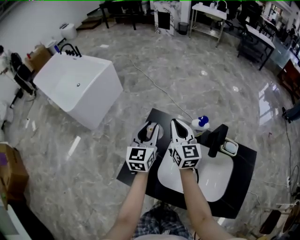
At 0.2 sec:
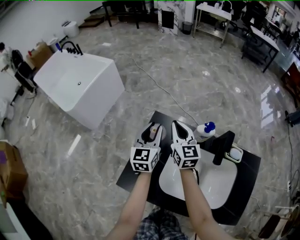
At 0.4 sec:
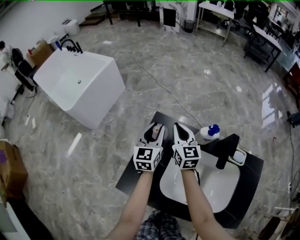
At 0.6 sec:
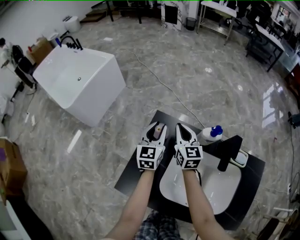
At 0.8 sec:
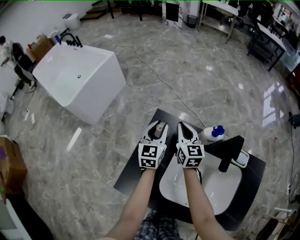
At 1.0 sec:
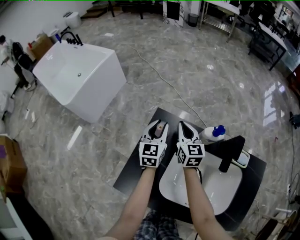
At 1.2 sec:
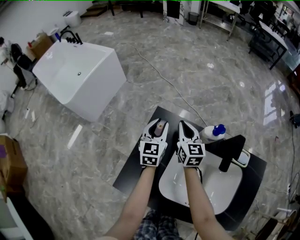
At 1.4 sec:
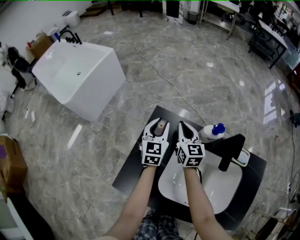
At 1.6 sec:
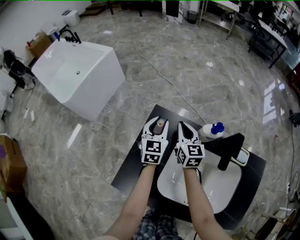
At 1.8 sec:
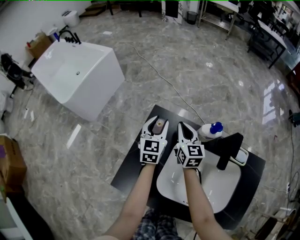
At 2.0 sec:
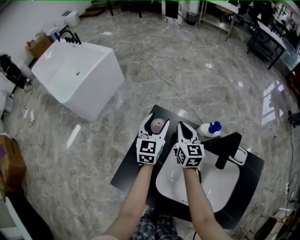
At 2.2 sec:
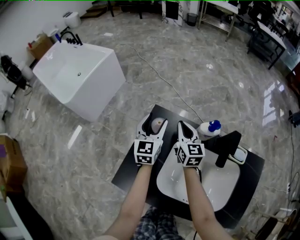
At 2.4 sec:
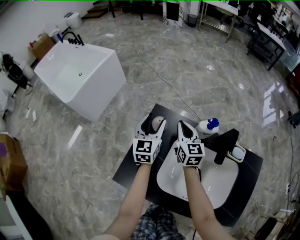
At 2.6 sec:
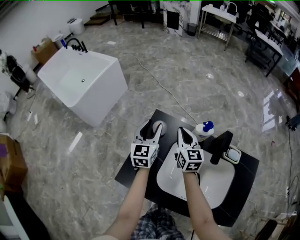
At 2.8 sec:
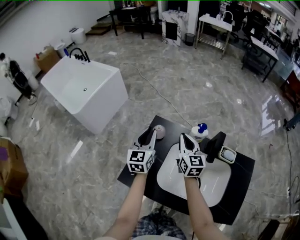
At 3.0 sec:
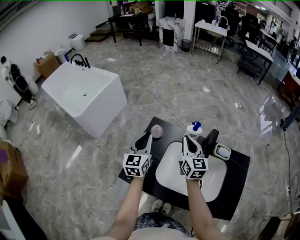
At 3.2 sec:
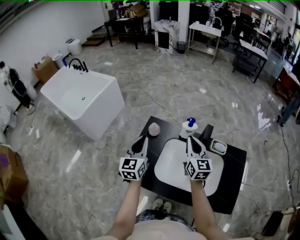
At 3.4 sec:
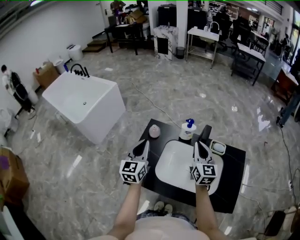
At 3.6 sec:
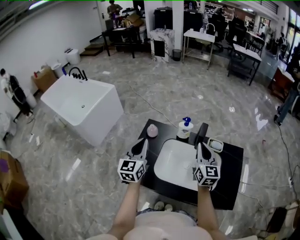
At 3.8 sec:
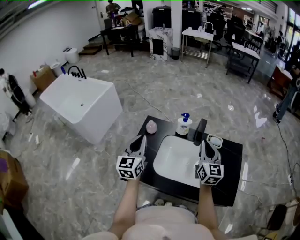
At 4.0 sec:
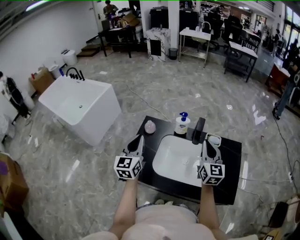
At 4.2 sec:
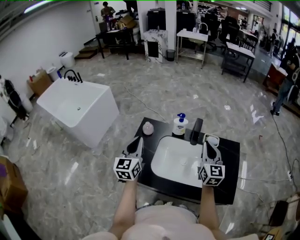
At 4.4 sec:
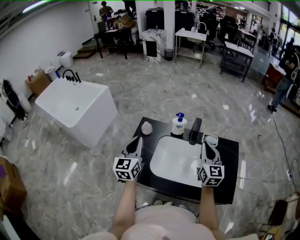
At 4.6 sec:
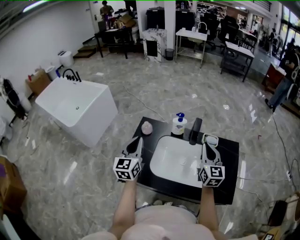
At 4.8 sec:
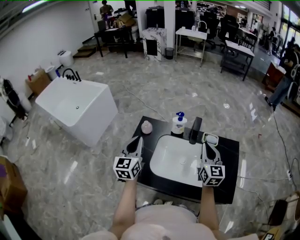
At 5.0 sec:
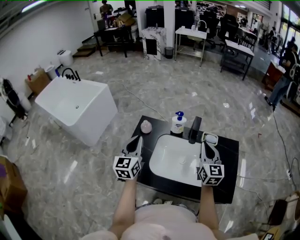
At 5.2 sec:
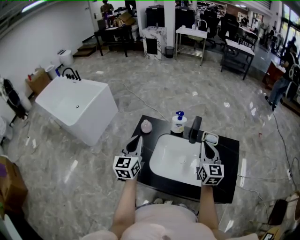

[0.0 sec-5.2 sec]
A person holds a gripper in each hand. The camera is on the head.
0.0 sec to 1.8 sec: The two grippers go about 20 cm downward and forward.
1.8 sec to 3.4 sec: The left gripper heads backward and upward, covering approximately 35 cm, and closes. Meanwhile the right gripper moves backward, upward and to the right, about 40 cm.
3.4 sec to 5.2 sec: The right gripper is displaced to the right and backward by some 10 cm.

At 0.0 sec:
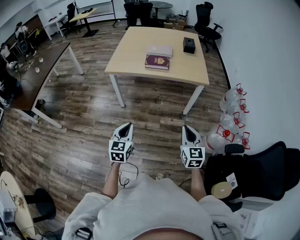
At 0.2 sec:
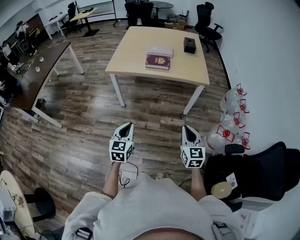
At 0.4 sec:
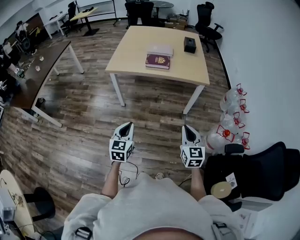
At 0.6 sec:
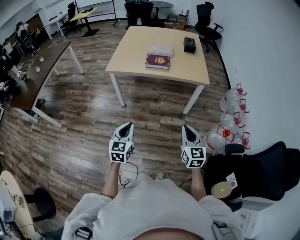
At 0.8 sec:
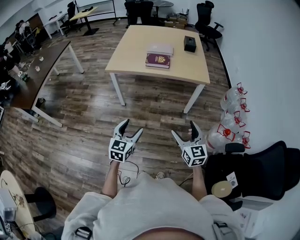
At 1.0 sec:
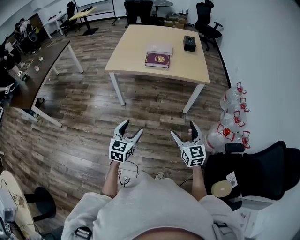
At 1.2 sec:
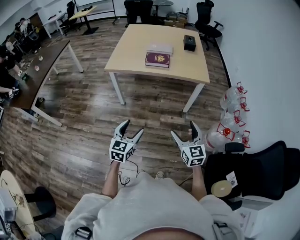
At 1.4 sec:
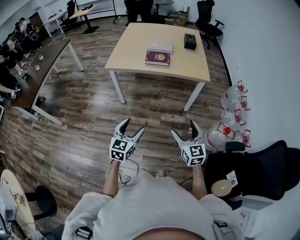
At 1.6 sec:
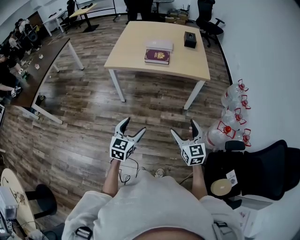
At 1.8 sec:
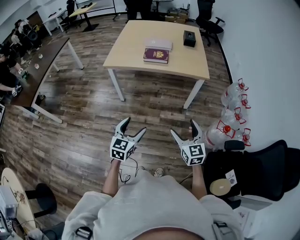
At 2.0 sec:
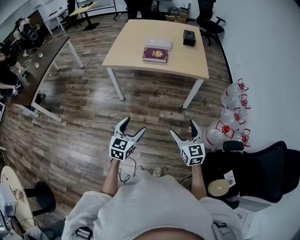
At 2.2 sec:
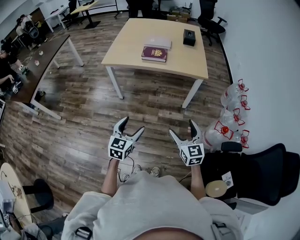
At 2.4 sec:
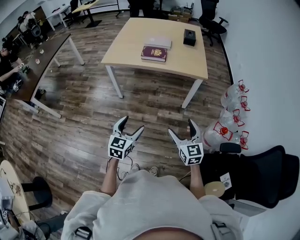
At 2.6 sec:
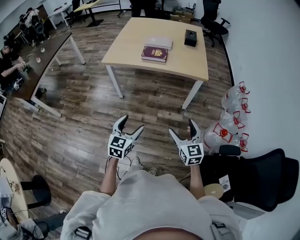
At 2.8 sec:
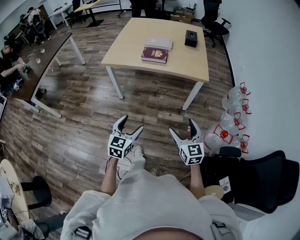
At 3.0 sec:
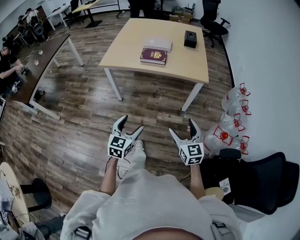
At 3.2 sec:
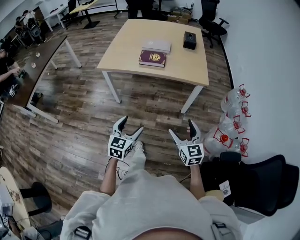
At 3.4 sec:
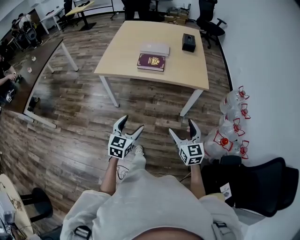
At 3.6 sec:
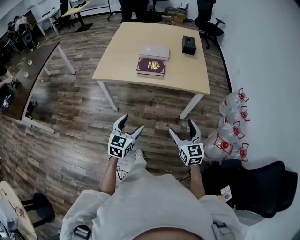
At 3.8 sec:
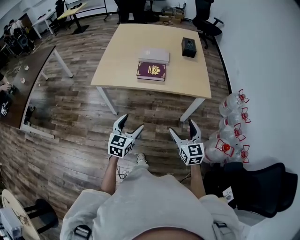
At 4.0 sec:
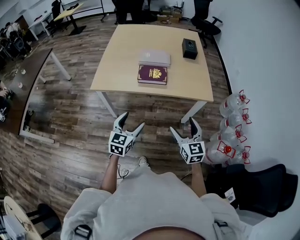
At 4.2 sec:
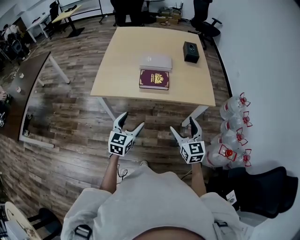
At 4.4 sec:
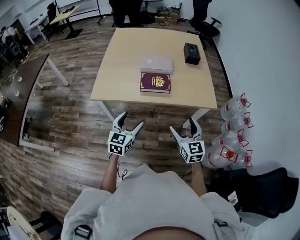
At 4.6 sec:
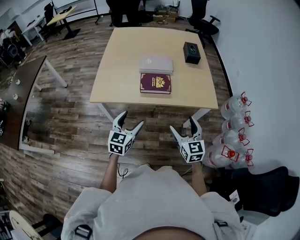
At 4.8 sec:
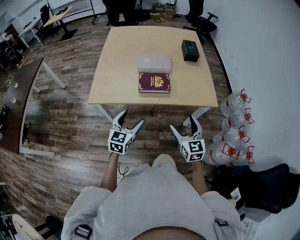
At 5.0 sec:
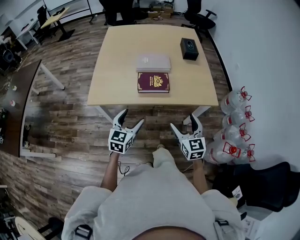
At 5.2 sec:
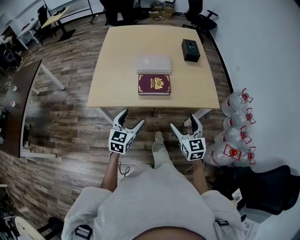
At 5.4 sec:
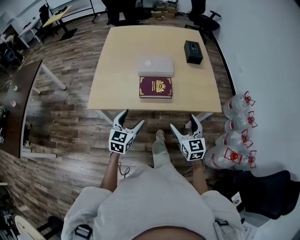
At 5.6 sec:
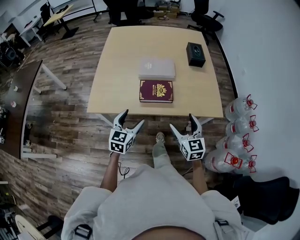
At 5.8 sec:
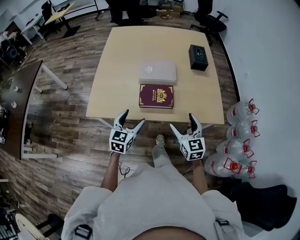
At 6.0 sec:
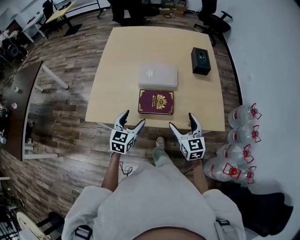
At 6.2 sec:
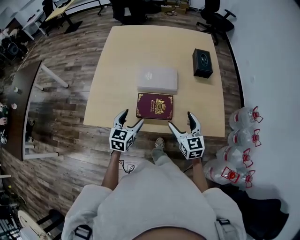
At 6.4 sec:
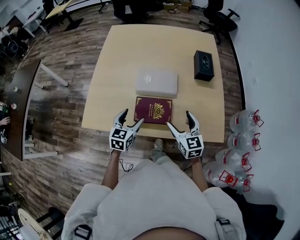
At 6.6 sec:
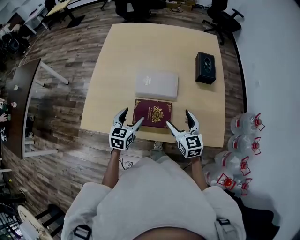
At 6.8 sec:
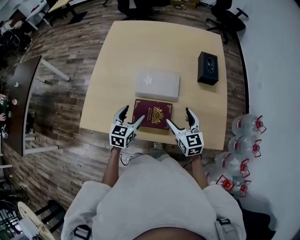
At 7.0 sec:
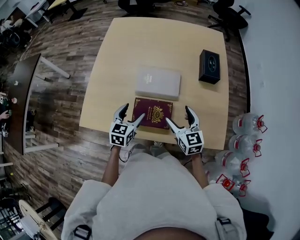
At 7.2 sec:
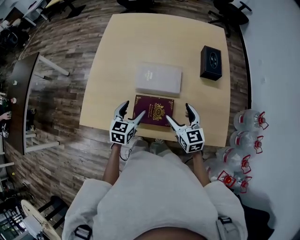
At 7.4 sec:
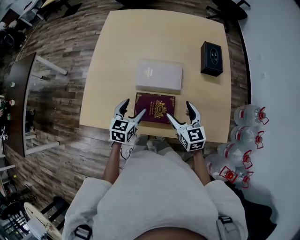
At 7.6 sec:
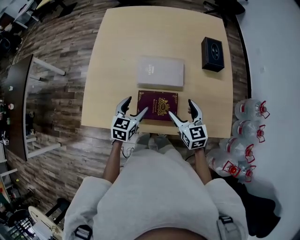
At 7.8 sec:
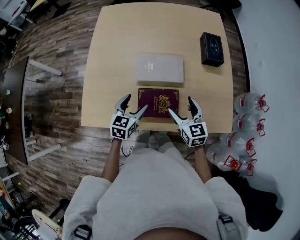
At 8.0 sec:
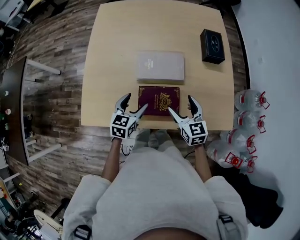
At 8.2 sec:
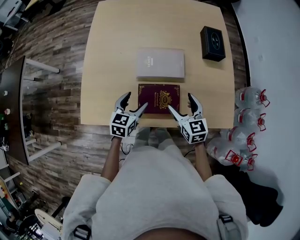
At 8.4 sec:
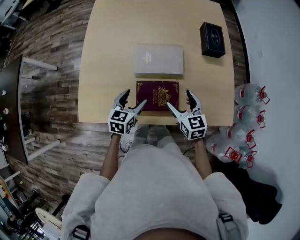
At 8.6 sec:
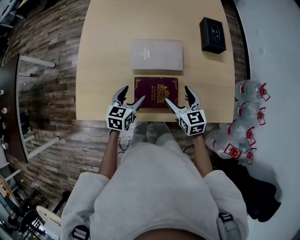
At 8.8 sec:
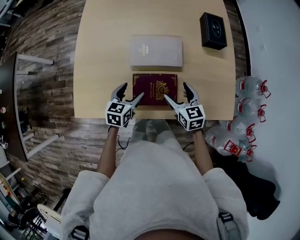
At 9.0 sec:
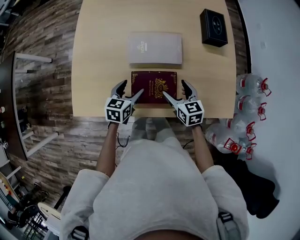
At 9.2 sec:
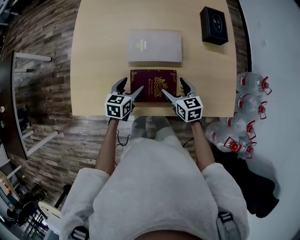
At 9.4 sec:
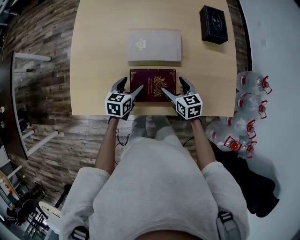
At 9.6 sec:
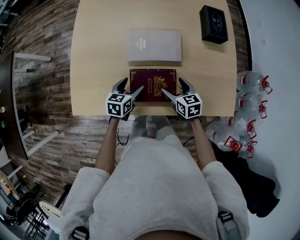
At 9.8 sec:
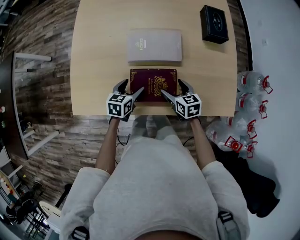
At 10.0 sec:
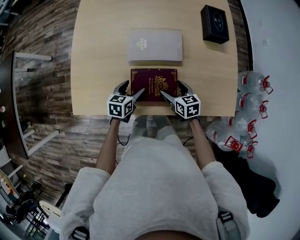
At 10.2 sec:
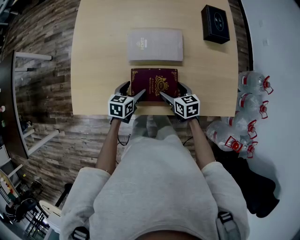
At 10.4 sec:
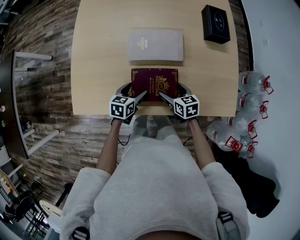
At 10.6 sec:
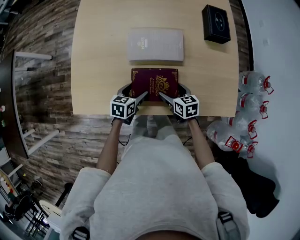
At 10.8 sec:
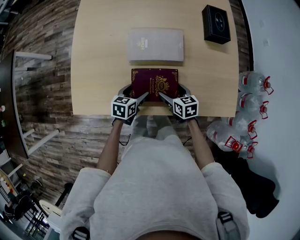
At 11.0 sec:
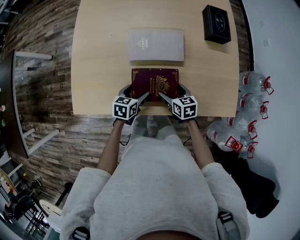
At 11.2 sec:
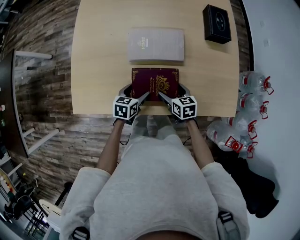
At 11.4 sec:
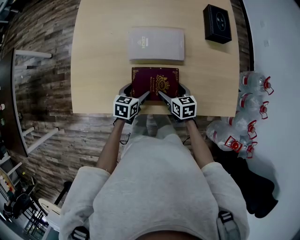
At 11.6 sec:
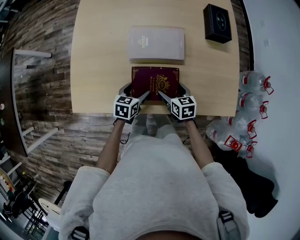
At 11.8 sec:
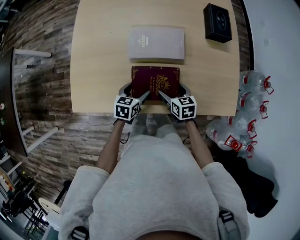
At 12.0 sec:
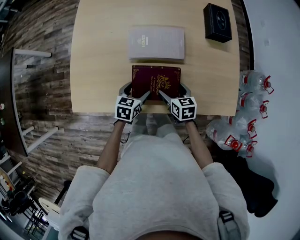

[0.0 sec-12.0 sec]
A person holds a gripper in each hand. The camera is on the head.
0.0 sec to 1.6 sec: The right gripper opens up, while the left gripper opens.
1.6 sec to 3.0 sec: The left gripper goes approximately 5 cm to the right and forward, while the right gripper goes roughly 10 cm forward and to the right.
3.0 sec to 4.4 sec: Both grippers move forward, roughly 30 cm.
4.4 sec to 6.0 sec: The grippers both shift forward by about 20 cm.
6.0 sec to 7.6 sec: The two grippers go some 15 cm forward.
7.6 sec to 9.0 sec: The two grippers go approximately 10 cm downward.
9.0 sec to 10.4 sec: The grippers both shift downward by some 5 cm.
10.4 sec to 12.0 sec: The grippers move only a little.

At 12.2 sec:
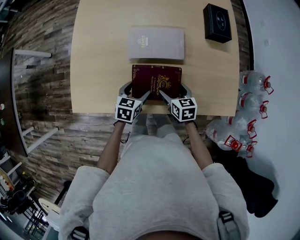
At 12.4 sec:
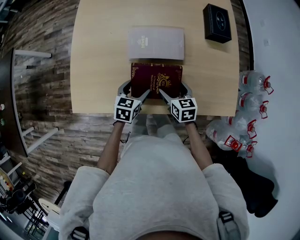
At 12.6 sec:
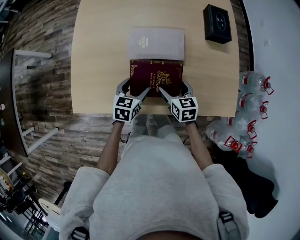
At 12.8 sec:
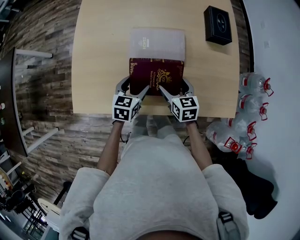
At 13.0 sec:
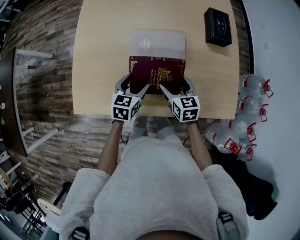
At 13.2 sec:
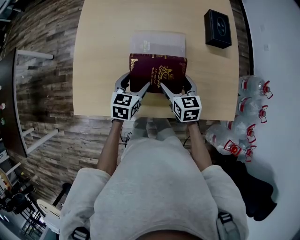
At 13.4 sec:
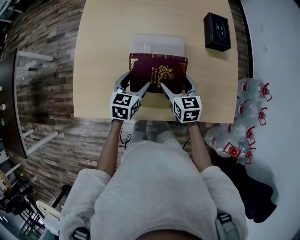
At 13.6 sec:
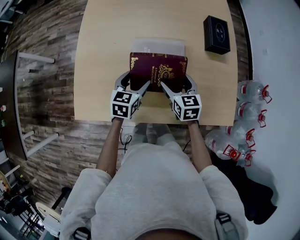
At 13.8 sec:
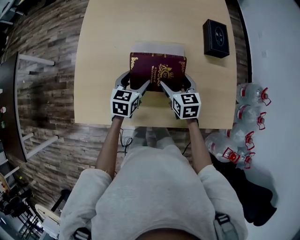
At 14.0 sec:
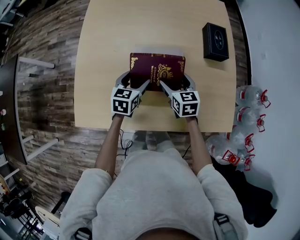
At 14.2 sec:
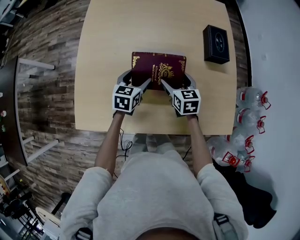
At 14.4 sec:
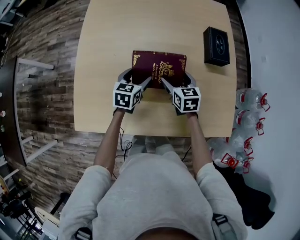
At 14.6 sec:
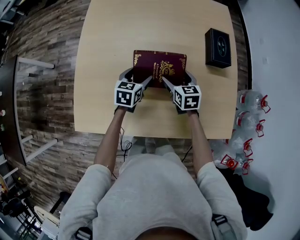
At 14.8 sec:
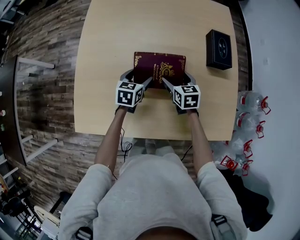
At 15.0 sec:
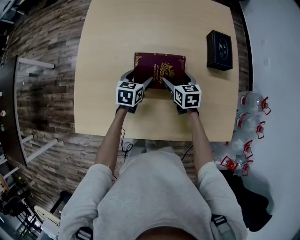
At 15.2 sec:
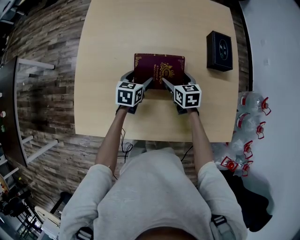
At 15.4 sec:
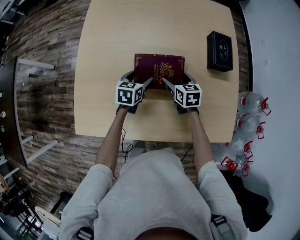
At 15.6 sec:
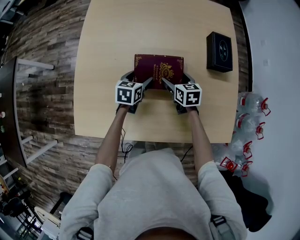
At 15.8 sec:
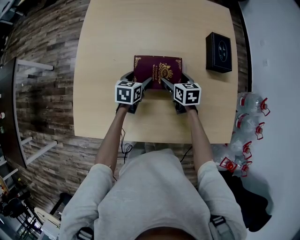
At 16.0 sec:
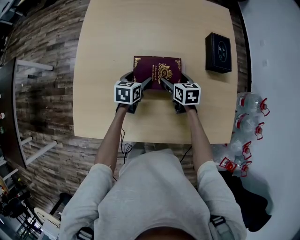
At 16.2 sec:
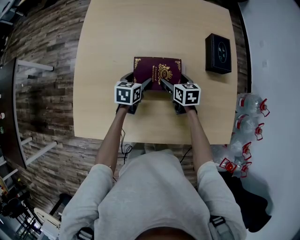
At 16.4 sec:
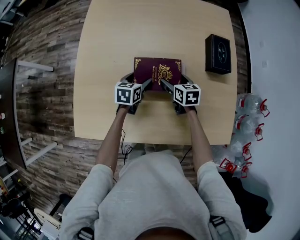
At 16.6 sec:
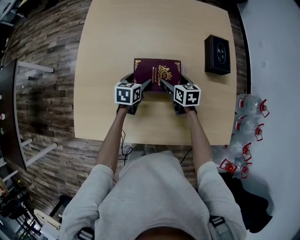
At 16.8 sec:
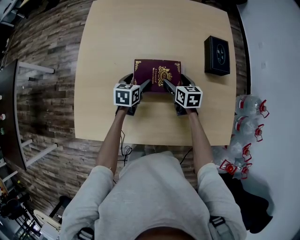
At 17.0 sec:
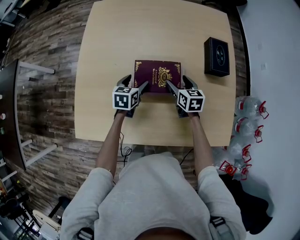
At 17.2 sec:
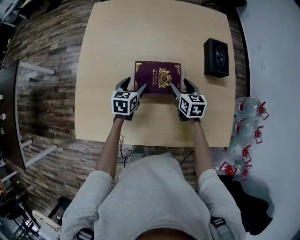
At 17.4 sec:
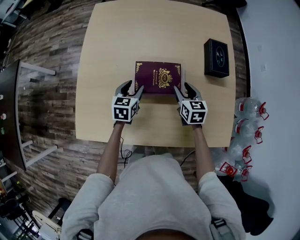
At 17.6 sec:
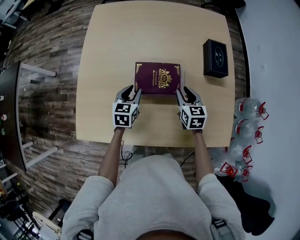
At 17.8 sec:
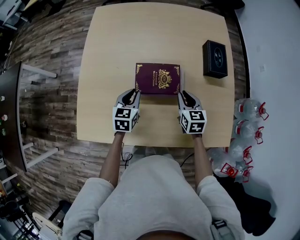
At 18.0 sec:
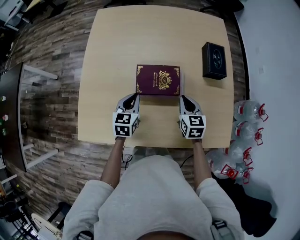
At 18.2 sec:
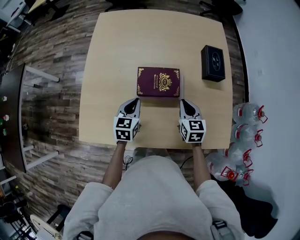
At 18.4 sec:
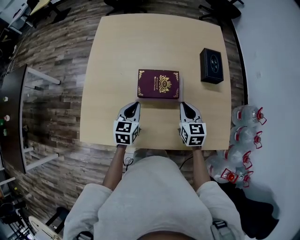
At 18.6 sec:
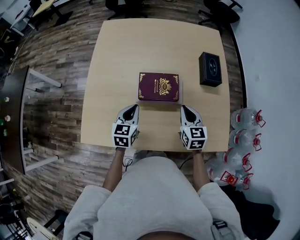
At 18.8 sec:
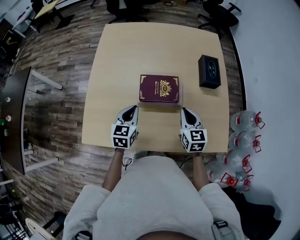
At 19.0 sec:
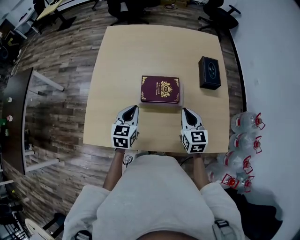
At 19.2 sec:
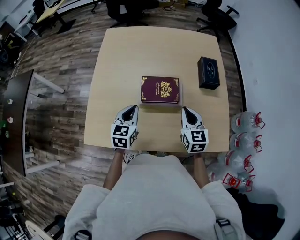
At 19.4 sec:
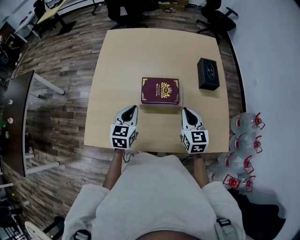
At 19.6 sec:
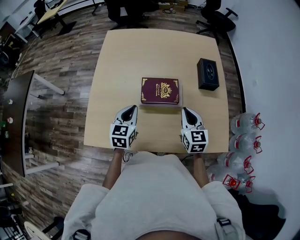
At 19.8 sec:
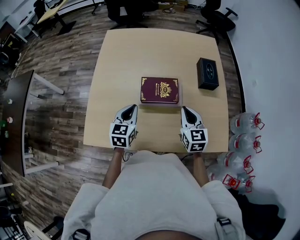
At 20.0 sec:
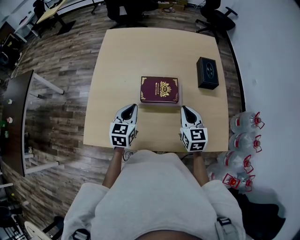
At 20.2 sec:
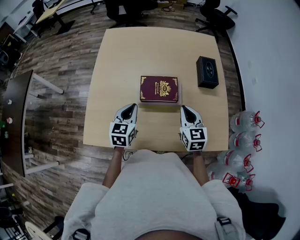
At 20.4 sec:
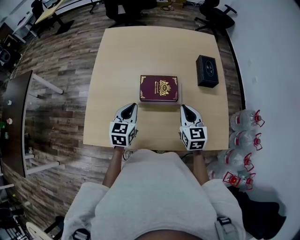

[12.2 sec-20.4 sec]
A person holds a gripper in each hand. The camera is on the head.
12.2 sec to 13.8 sec: The two grippers go approximately 15 cm forward and upward.
13.8 sec to 15.4 sec: The grippers both shift forward and downward by some 10 cm.
15.4 sec to 17.2 sec: The grippers make only small movements.
17.2 sec to 18.8 sec: The grippers both shift backward and upward by some 15 cm. The right gripper closes up; the left gripper closes.
18.8 sec to 20.4 sec: There are only small adjustments of the grippers.
